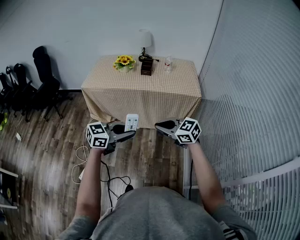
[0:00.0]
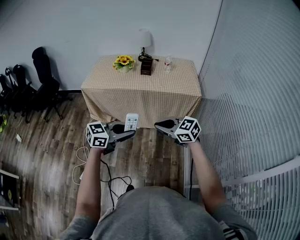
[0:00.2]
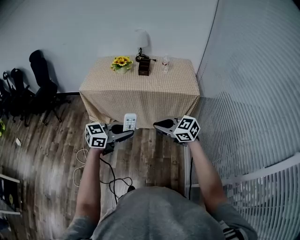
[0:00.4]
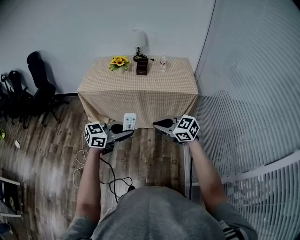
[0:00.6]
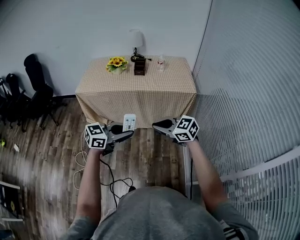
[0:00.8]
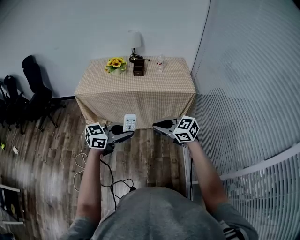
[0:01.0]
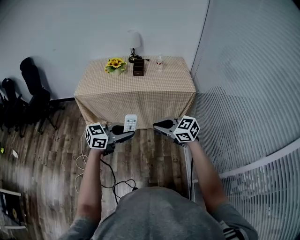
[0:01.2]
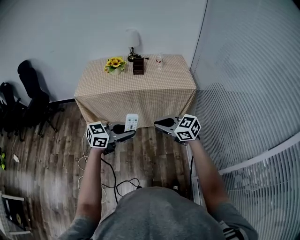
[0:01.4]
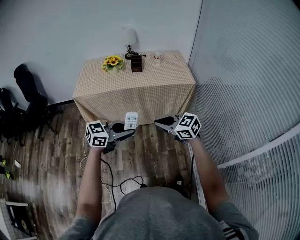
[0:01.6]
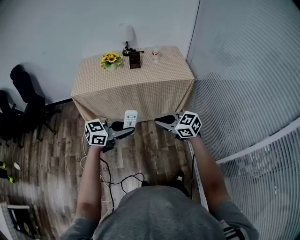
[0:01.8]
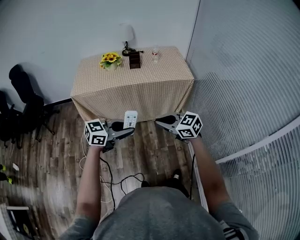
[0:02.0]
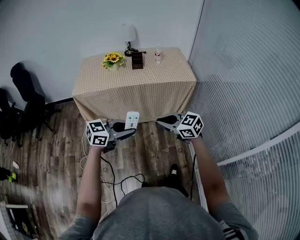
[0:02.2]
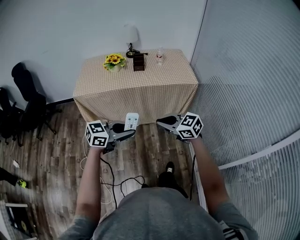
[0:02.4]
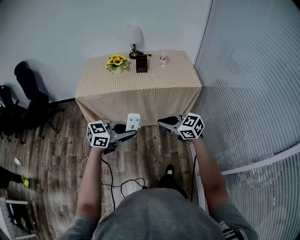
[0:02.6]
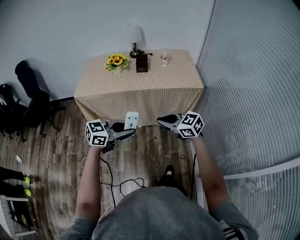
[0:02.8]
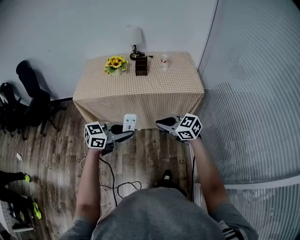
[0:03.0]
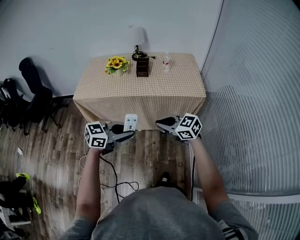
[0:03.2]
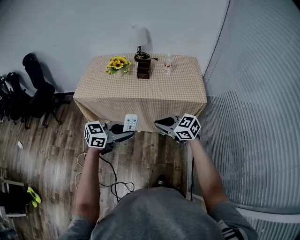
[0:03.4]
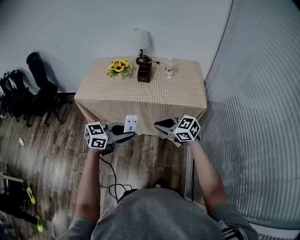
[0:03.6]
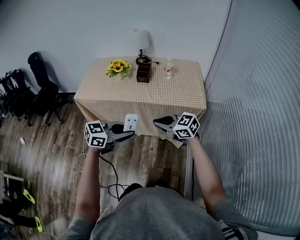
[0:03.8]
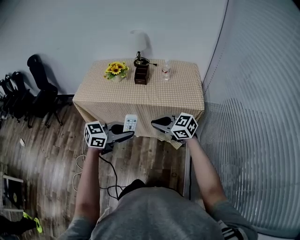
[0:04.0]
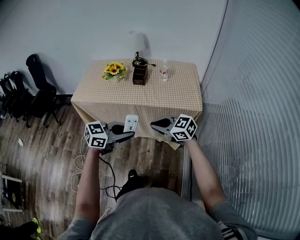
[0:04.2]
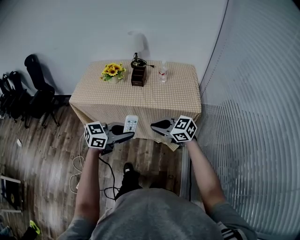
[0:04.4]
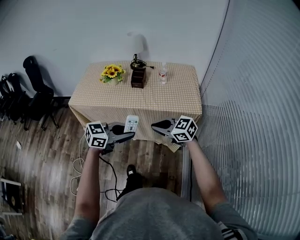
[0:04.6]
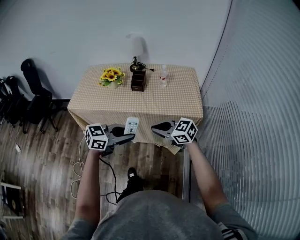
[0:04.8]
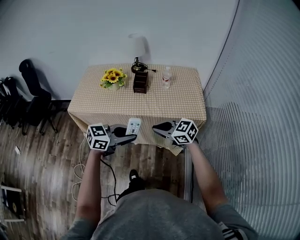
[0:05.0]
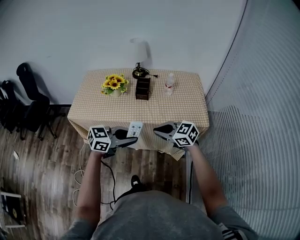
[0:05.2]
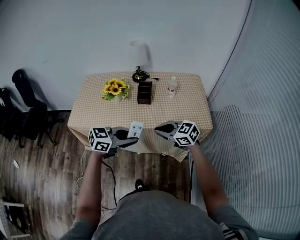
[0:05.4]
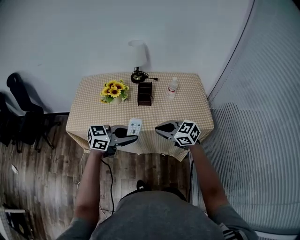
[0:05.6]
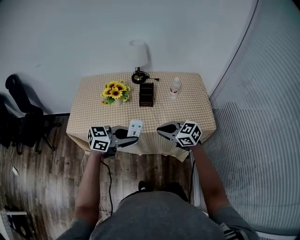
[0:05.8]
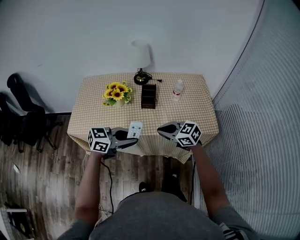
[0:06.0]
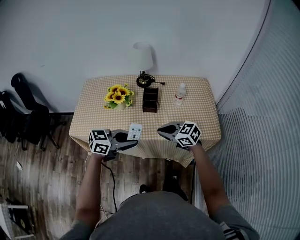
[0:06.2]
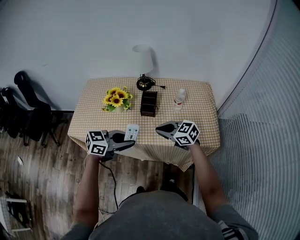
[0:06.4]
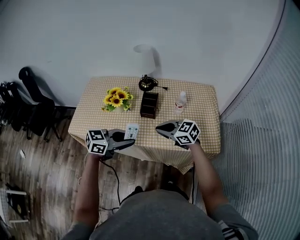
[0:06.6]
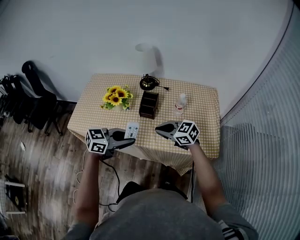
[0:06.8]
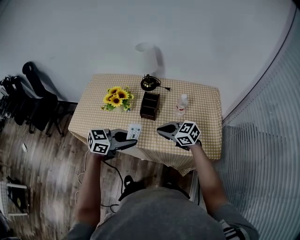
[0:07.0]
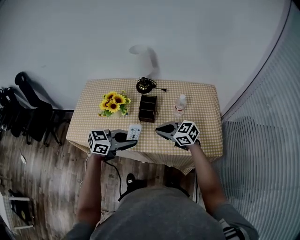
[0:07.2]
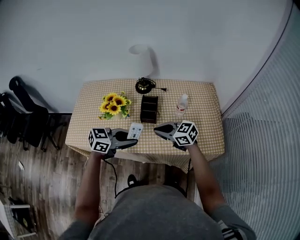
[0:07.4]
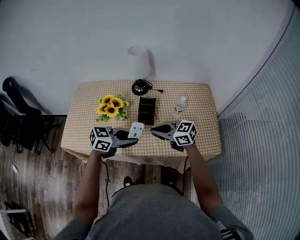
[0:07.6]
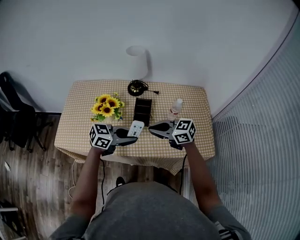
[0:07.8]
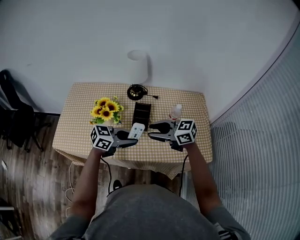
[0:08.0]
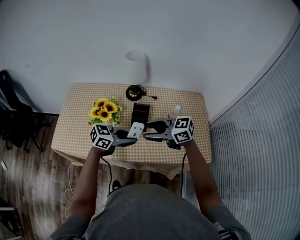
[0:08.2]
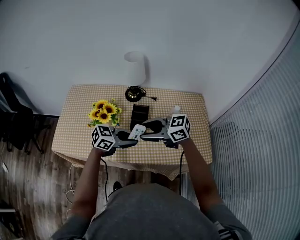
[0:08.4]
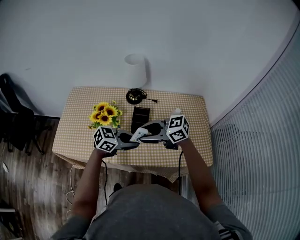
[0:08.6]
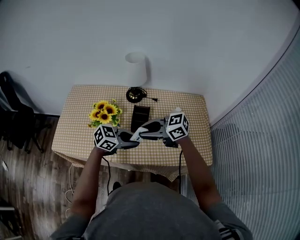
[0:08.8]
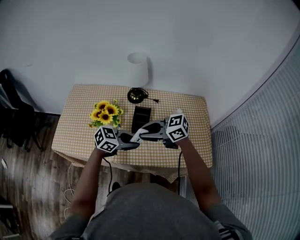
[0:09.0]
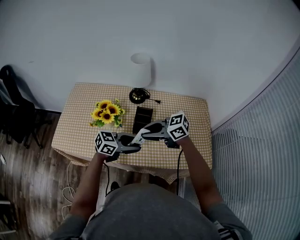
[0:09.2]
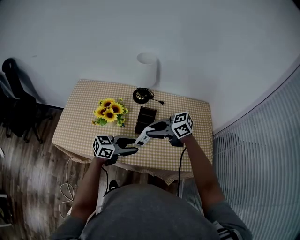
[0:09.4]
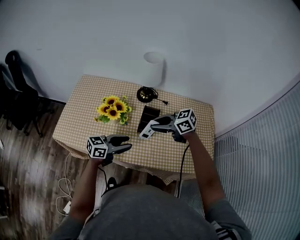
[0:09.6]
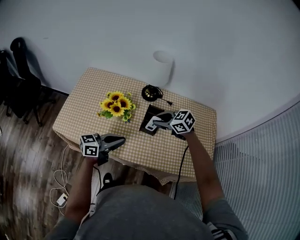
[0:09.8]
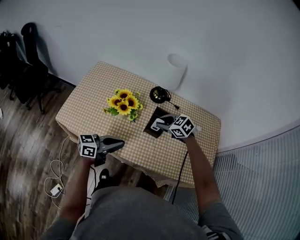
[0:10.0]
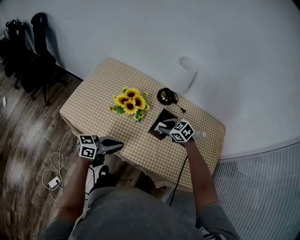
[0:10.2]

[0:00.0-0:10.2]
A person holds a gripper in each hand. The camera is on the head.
0:00.0 to 0:01.4: The right gripper moves about 5 cm. The left gripper changes place by approximately 5 cm.
0:01.4 to 0:03.0: The left gripper shifts by approximately 10 cm; the right gripper moves approximately 10 cm.
0:03.0 to 0:04.4: The right gripper shifts by roughly 15 cm, while the left gripper changes place by roughly 15 cm.
0:04.4 to 0:05.8: The left gripper changes place by roughly 25 cm; the right gripper ends up roughly 25 cm from where it was.
0:05.8 to 0:07.2: The right gripper moves some 15 cm. The left gripper shifts by roughly 15 cm.
0:07.2 to 0:08.8: The left gripper moves approximately 10 cm, while the right gripper travels upward by some 10 cm, and opens.
0:08.8 to 0:10.2: The right gripper moves downward, some 15 cm, and points its fingers approximately 30 degrees further downward; the left gripper changes place by some 15 cm, changes its angle by about 40 degrees, and closes up.

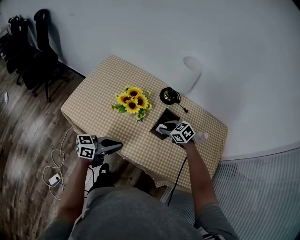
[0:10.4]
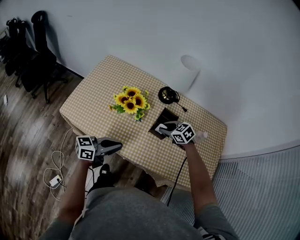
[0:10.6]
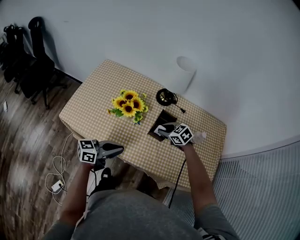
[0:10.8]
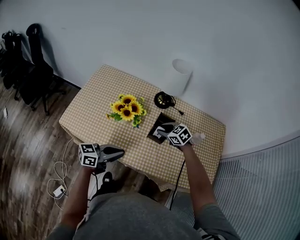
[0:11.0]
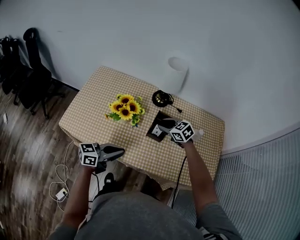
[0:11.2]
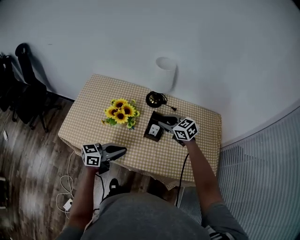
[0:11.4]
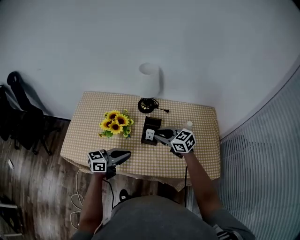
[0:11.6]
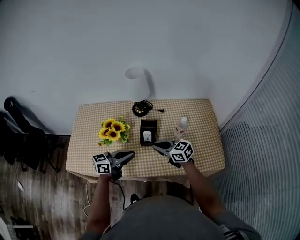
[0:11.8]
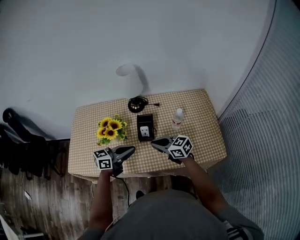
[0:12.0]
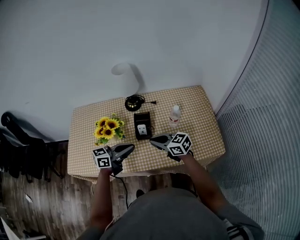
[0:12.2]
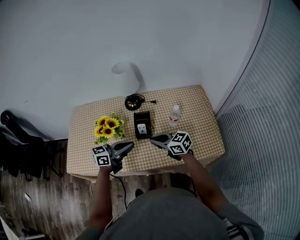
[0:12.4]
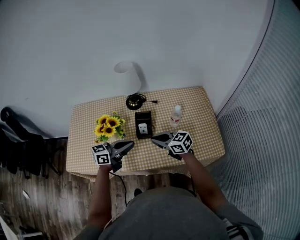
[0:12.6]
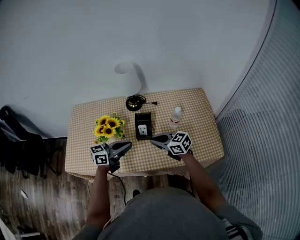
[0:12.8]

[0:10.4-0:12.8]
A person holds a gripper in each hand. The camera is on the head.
0:10.4 to 0:11.6: The right gripper shifts roughly 10 cm upward, and turns by approximately 30 degrees; the left gripper moves approximately 10 cm.
0:11.6 to 0:12.8: The right gripper changes place by roughly 5 cm, and closes.

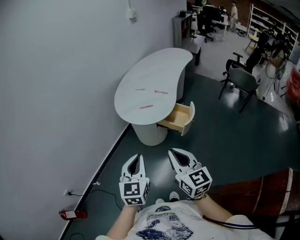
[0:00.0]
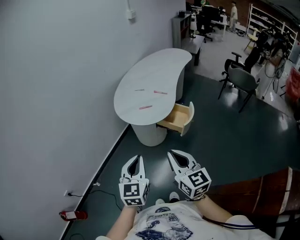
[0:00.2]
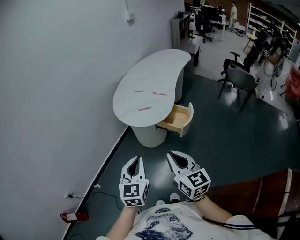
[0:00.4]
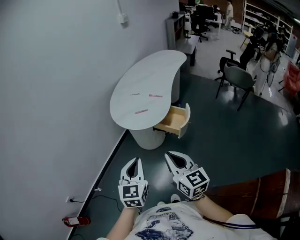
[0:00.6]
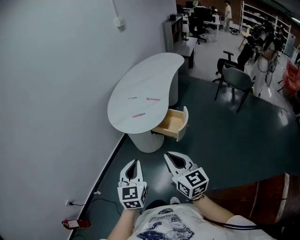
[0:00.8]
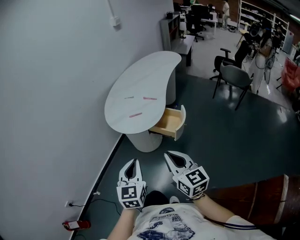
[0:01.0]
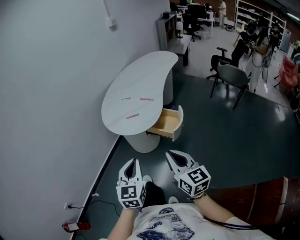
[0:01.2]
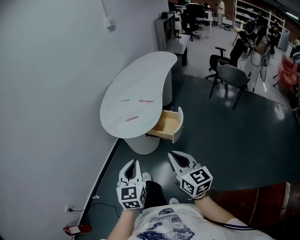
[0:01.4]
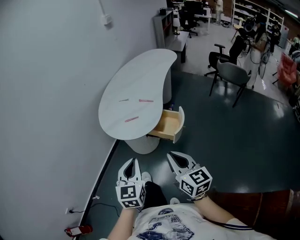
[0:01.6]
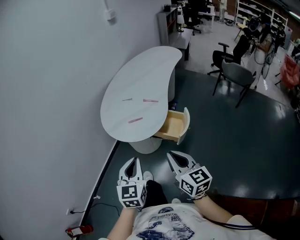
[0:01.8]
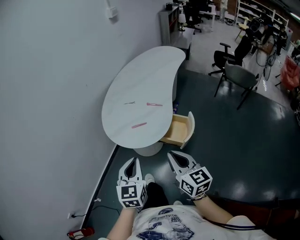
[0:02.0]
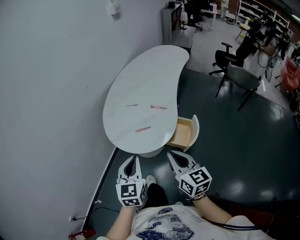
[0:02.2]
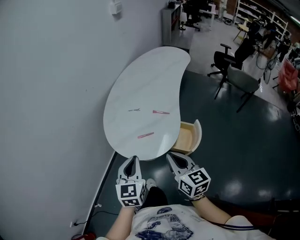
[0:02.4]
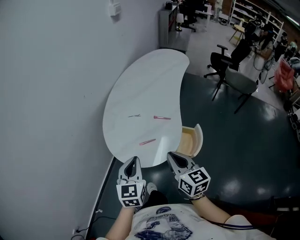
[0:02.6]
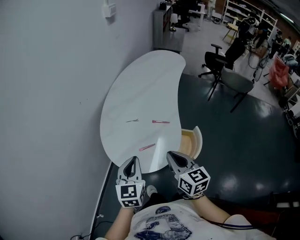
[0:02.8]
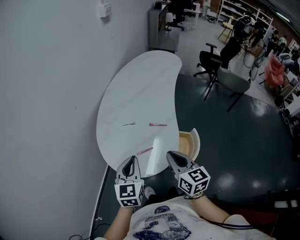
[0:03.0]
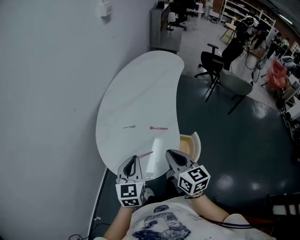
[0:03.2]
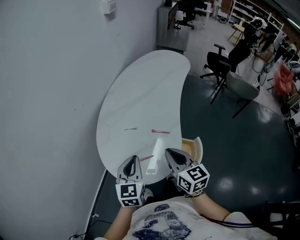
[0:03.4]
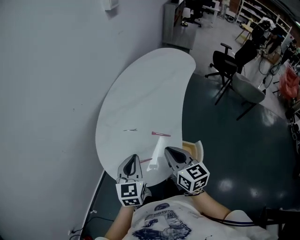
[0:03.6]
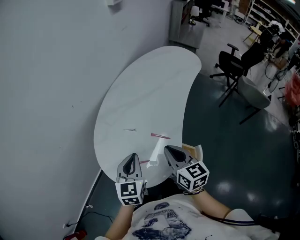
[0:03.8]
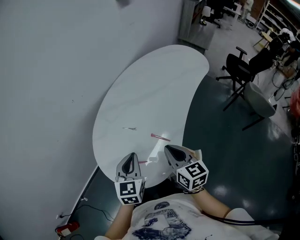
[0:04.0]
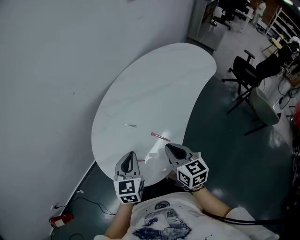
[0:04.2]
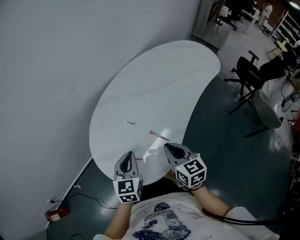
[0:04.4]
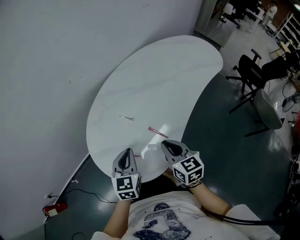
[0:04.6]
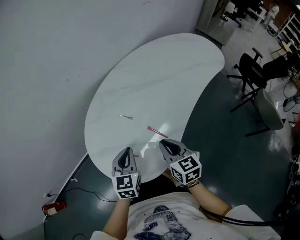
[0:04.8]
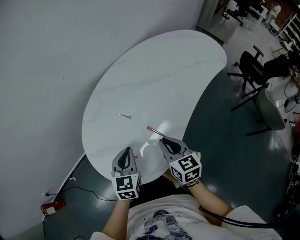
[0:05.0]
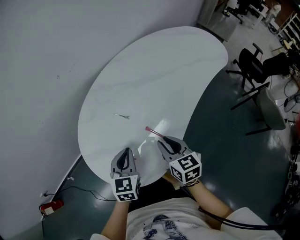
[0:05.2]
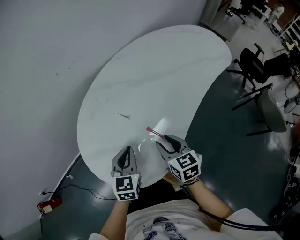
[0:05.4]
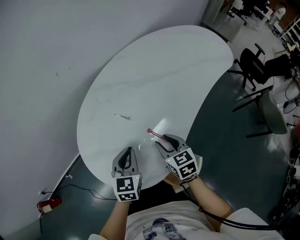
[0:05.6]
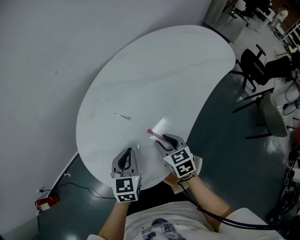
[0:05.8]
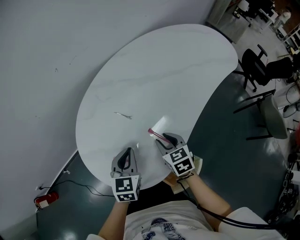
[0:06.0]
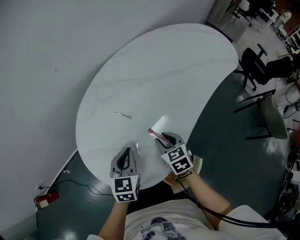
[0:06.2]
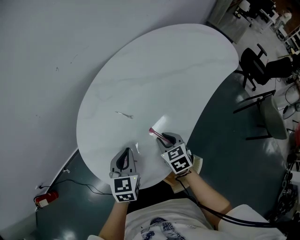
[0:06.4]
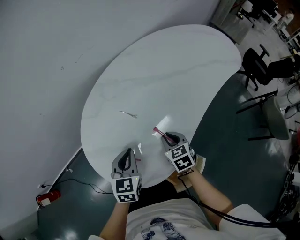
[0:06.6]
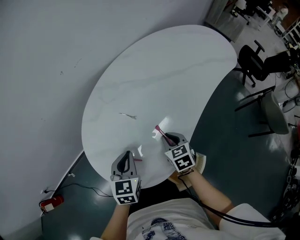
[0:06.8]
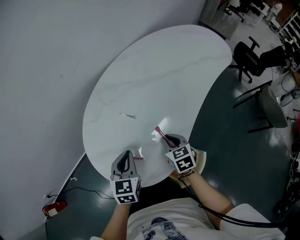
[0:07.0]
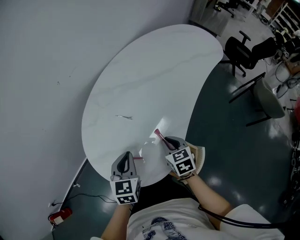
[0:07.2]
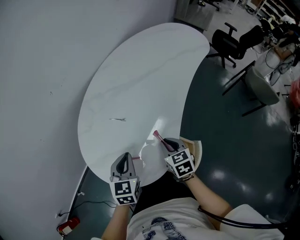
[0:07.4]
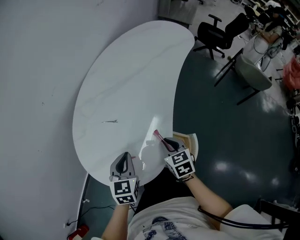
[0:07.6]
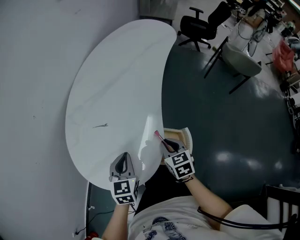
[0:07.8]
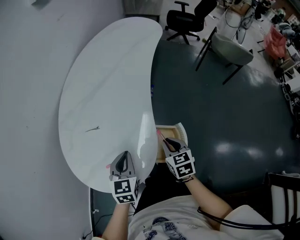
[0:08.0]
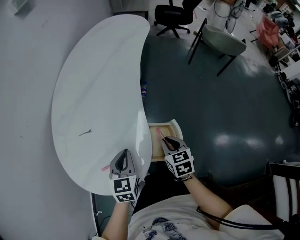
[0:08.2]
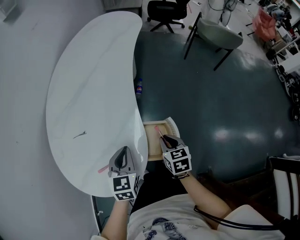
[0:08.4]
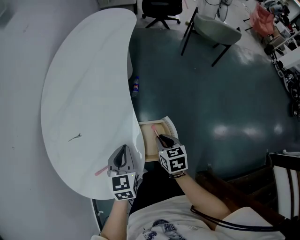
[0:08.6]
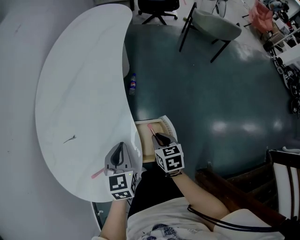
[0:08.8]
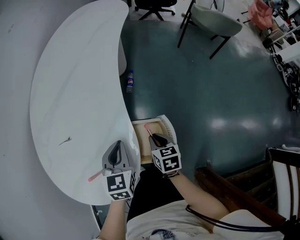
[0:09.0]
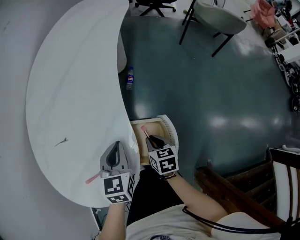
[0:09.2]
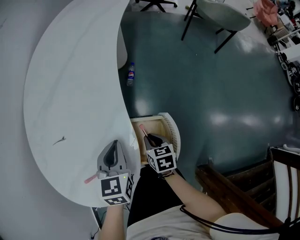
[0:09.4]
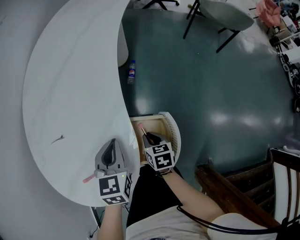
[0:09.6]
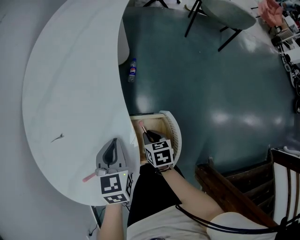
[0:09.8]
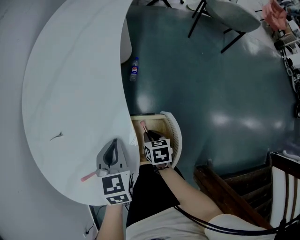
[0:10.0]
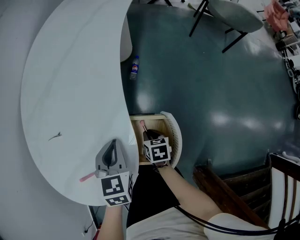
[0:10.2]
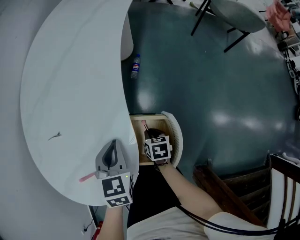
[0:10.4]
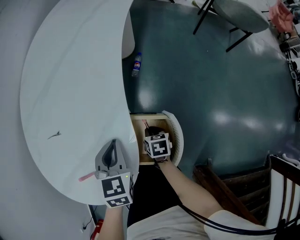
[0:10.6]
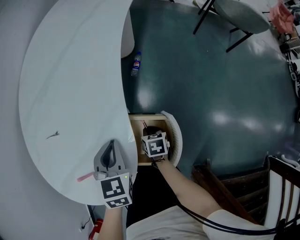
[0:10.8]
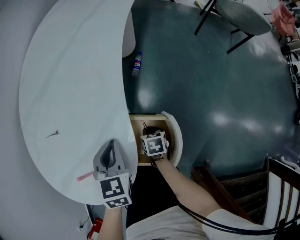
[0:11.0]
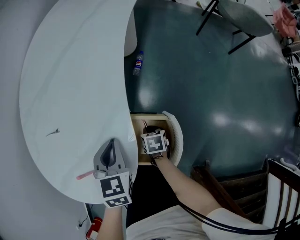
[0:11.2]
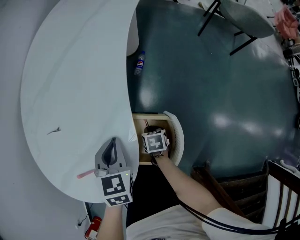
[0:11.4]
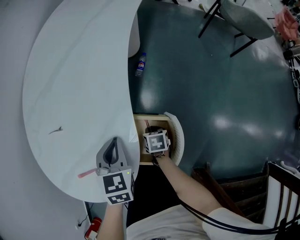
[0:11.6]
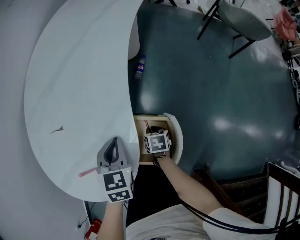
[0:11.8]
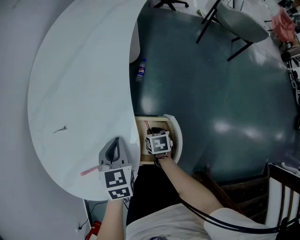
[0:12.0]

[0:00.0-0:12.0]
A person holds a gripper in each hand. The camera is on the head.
0:00.0 to 0:01.6: The right gripper shifts roughly 10 cm to the right and forward. The left gripper travels forward and to the right by about 10 cm.
0:01.6 to 0:03.0: Both grippers travel together forward, some 30 cm.
0:03.0 to 0:04.4: The left gripper ends up approximately 15 cm from where it was, and changes its angle by approximately 30 degrees. The right gripper shifts by roughly 20 cm, and changes its angle by about 30 degrees.
0:04.4 to 0:06.0: The right gripper shifts approximately 15 cm downward, rotates some 20 degrees, and opens; the left gripper shifts about 10 cm downward.
0:06.0 to 0:07.6: The right gripper moves backward, approximately 10 cm, swivels about 30 degrees, and closes its fingers. Meanwhile the left gripper ends up roughly 5 cm from where it was.
0:07.6 to 0:09.0: The left gripper moves to the right and downward, some 20 cm, and rotates about 20 degrees. Meanwhile the right gripper is displaced downward and to the right by approximately 20 cm, and rotates about 30 degrees.
0:09.0 to 0:10.4: The right gripper is displaced downward by approximately 15 cm.
0:10.4 to 0:12.0: The grippers make only small movements.
